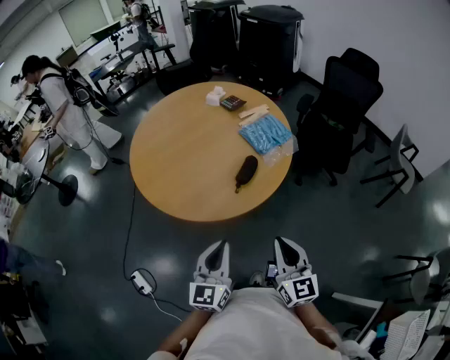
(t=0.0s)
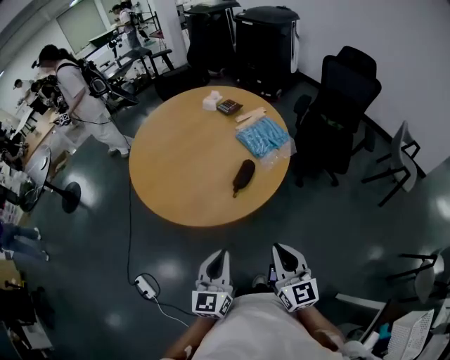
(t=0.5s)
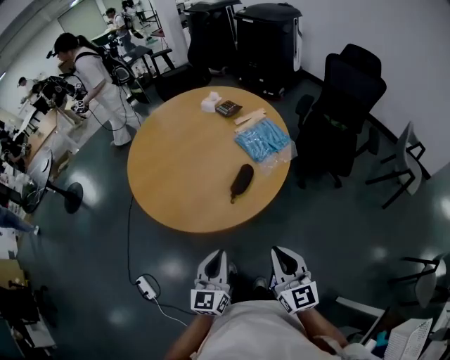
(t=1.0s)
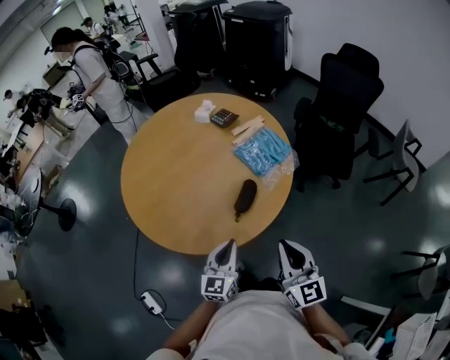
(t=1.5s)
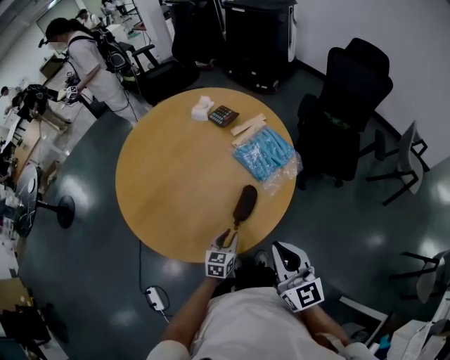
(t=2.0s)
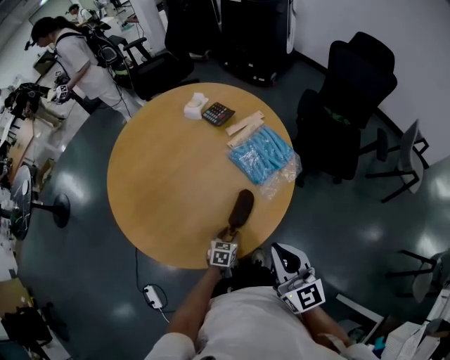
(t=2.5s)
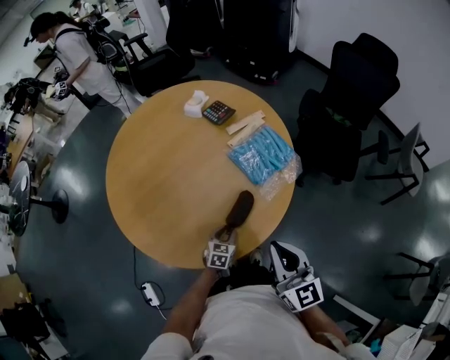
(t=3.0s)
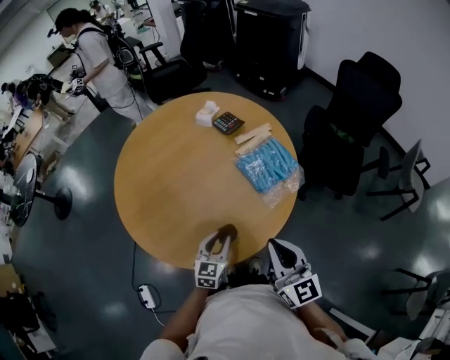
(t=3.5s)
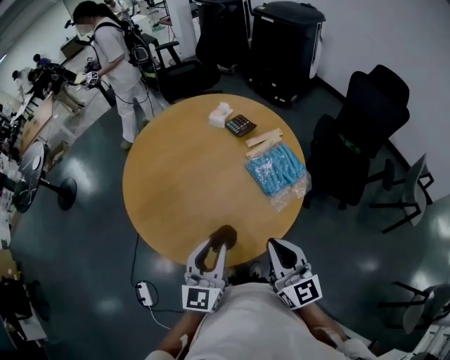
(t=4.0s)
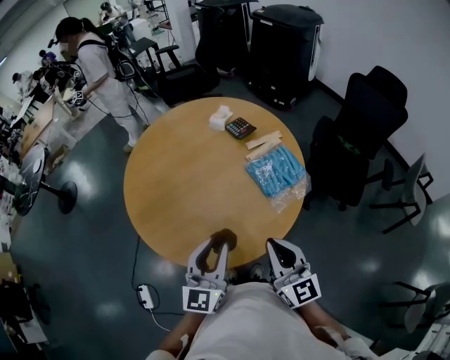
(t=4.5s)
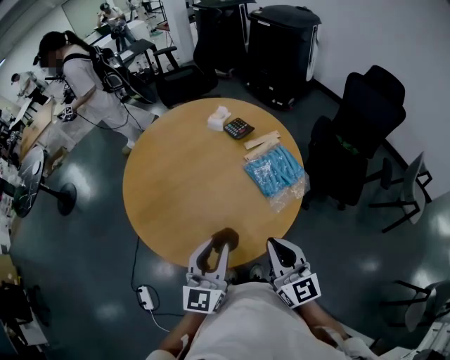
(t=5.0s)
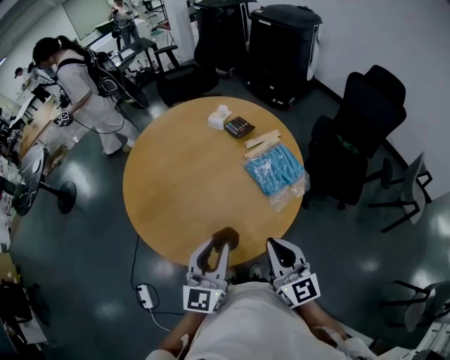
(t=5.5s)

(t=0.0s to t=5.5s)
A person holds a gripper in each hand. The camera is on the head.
t=0.0s - t=2.0s: The left gripper shifts some 35 cm forward and downward, rotates approximately 30 degrees, and opens up; the right gripper is displaced forward by about 20 cm.
t=2.0s - t=3.5s: The right gripper heads forward, covering approximately 5 cm; the left gripper goes roughly 5 cm upward.
t=3.5s - t=5.5s: The left gripper heads upward, covering approximately 20 cm, and swivels about 20 degrees.

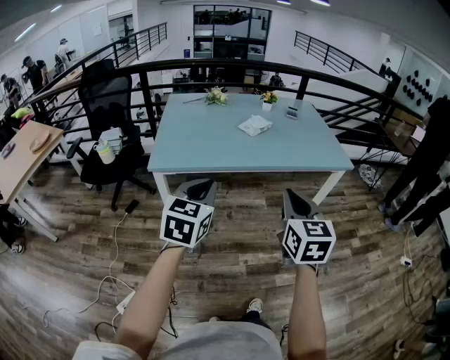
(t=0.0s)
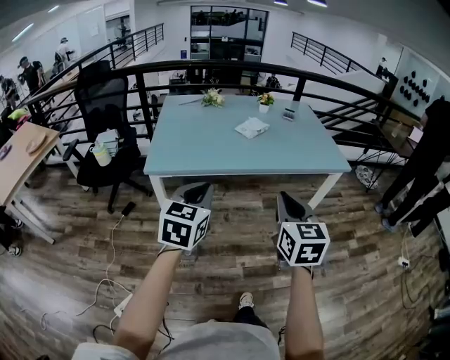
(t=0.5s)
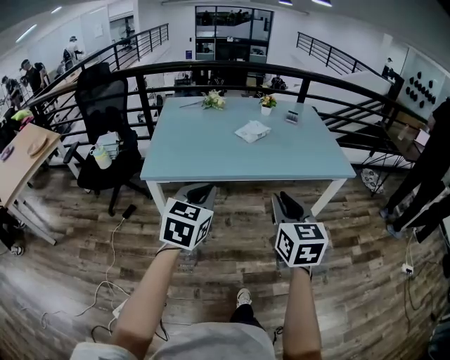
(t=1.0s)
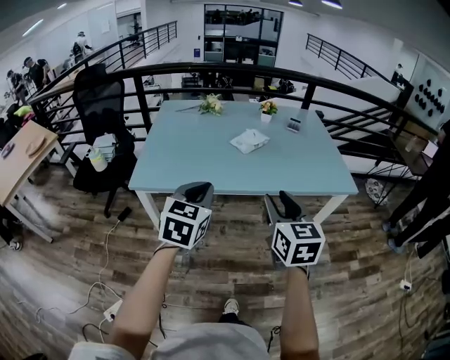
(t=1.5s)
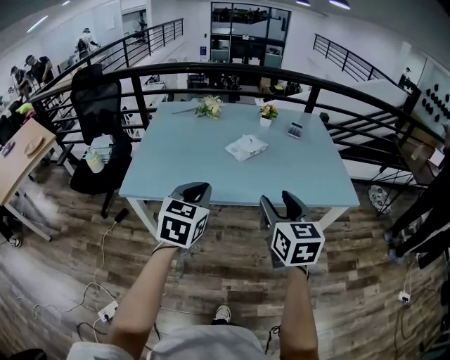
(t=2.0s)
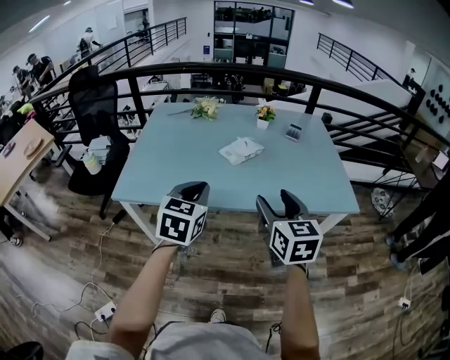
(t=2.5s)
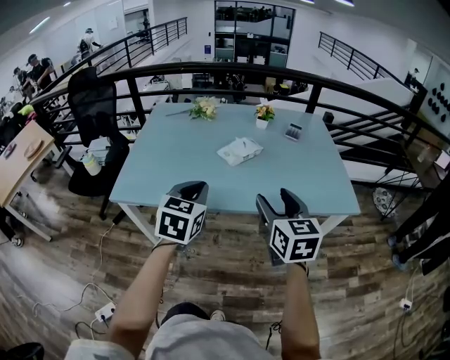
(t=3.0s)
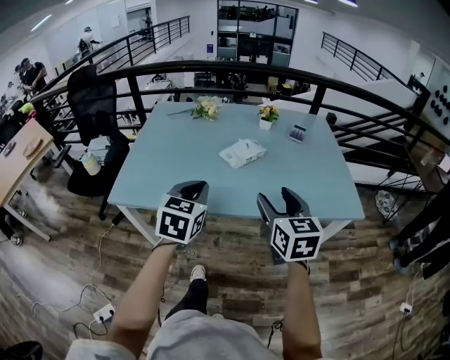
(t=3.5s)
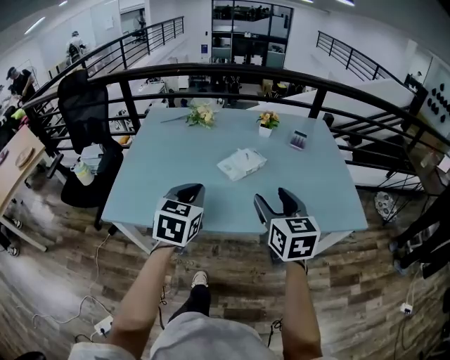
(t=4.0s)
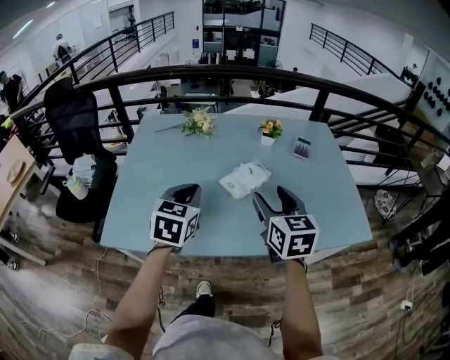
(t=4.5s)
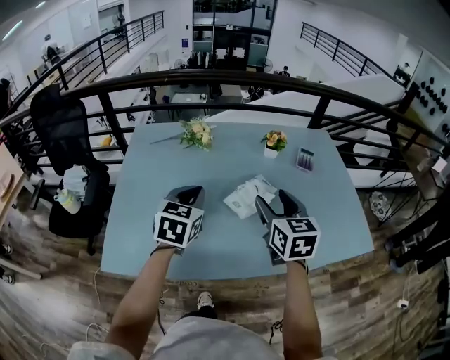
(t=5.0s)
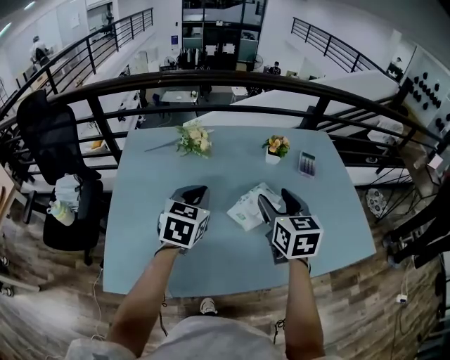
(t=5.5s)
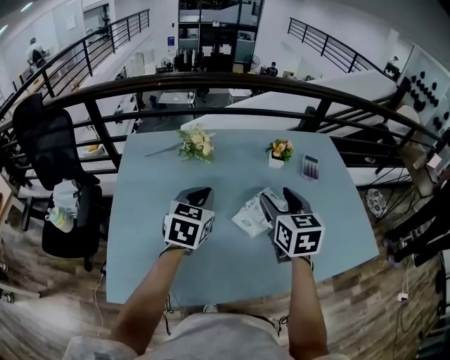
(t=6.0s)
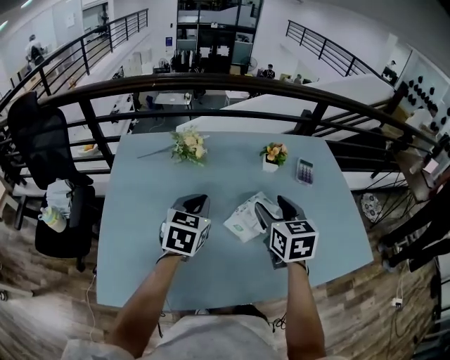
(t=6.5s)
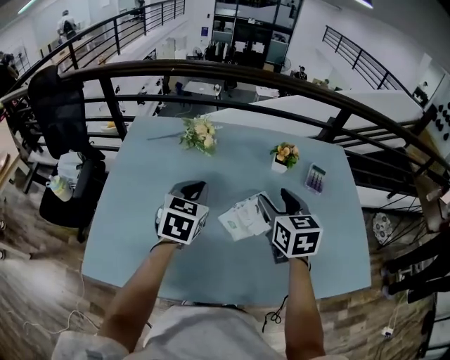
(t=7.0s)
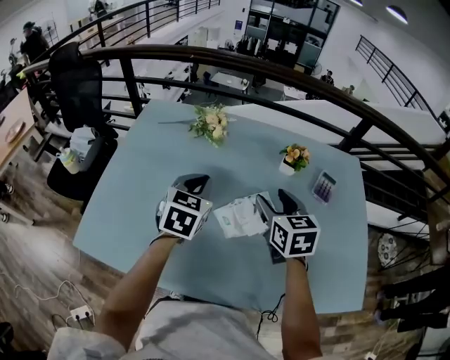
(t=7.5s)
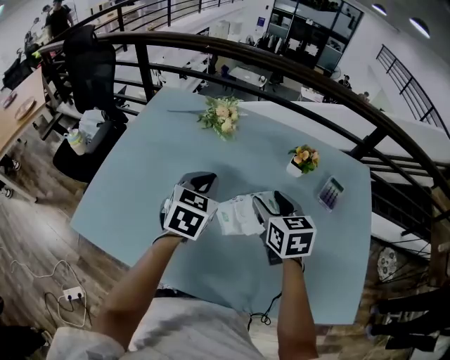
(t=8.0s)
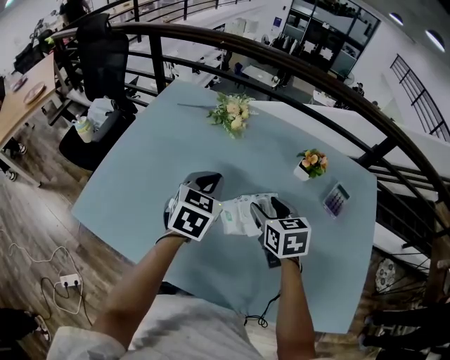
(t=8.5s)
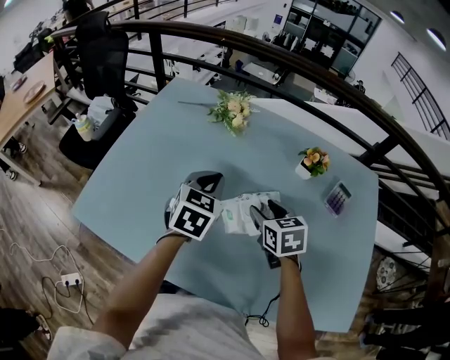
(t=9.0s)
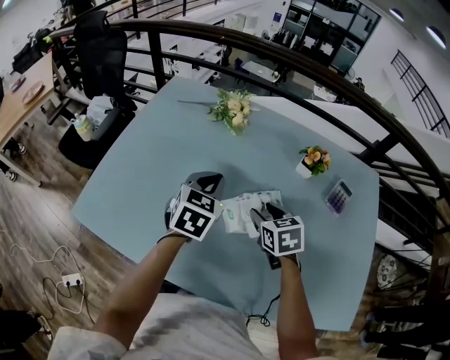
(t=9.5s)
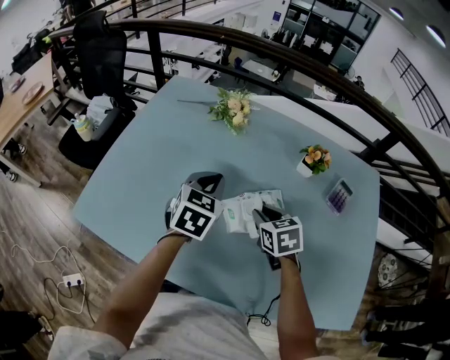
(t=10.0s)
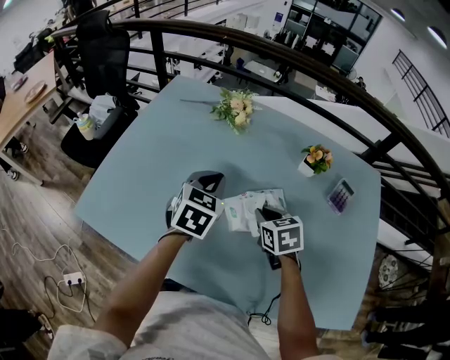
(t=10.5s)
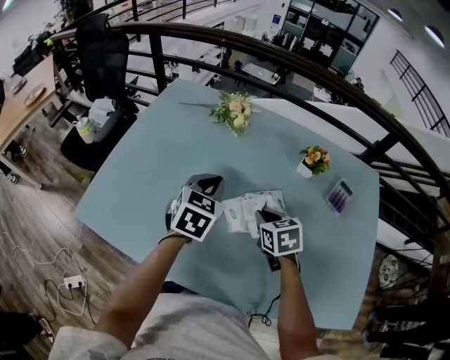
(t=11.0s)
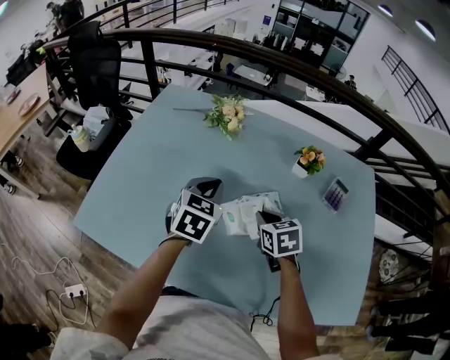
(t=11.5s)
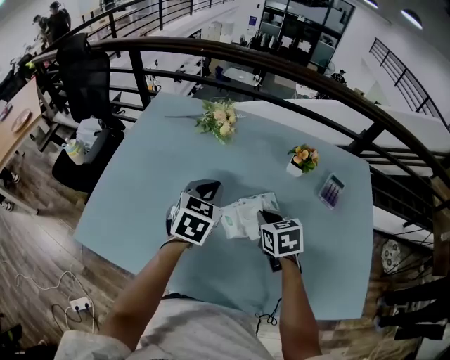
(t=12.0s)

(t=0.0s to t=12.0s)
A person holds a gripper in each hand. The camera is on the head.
t=0.0s - t=2.0s: The left gripper travels forward and to the right by about 25 cm; the right gripper moves forward, some 20 cm, and opens up.
t=2.0s - t=4.0s: Both grippers travel together forward, approximately 15 cm.
t=4.0s - t=6.0s: Both grippers travel together forward, some 25 cm.
t=6.0s - t=8.0s: The left gripper ends up some 5 cm from where it was, and swivels approximately 20 degrees. The right gripper shifts roughly 10 cm downward, and changes its angle by roughly 30 degrees.
t=8.0s - t=10.0s: The right gripper heads downward, covering about 10 cm, and closes.
t=10.0s - t=12.0s: The right gripper closes.

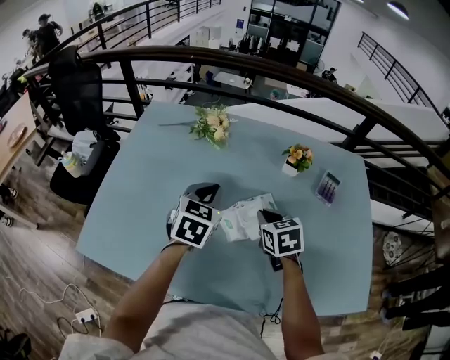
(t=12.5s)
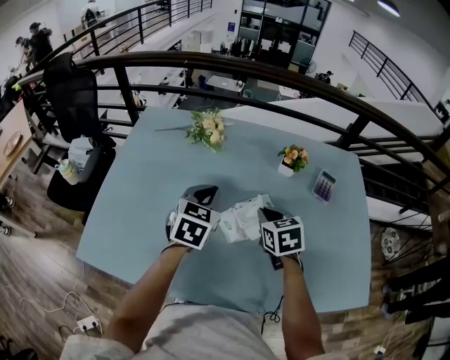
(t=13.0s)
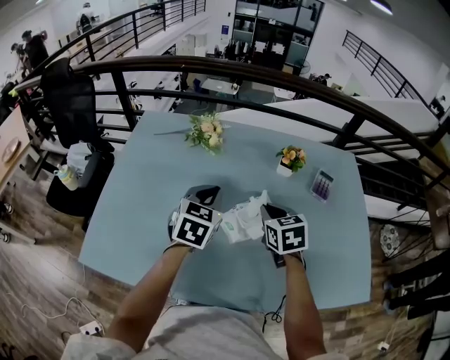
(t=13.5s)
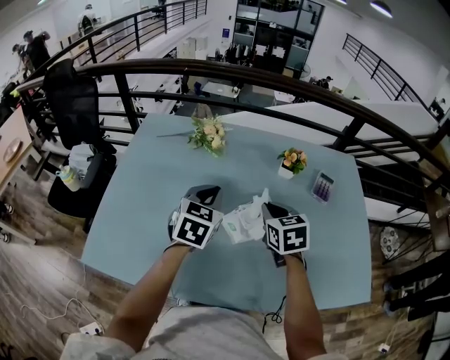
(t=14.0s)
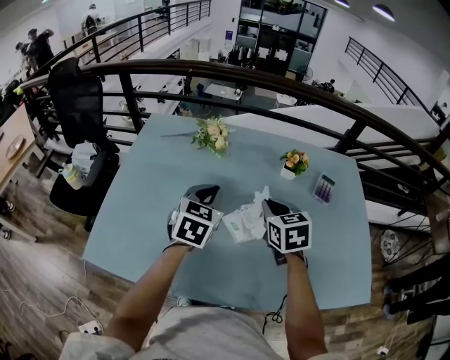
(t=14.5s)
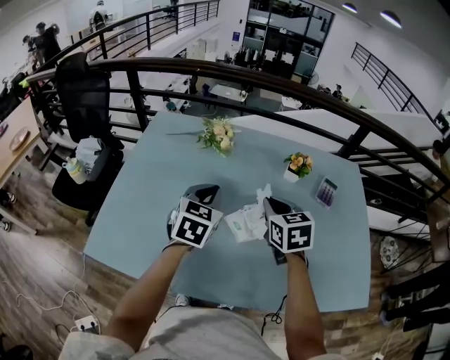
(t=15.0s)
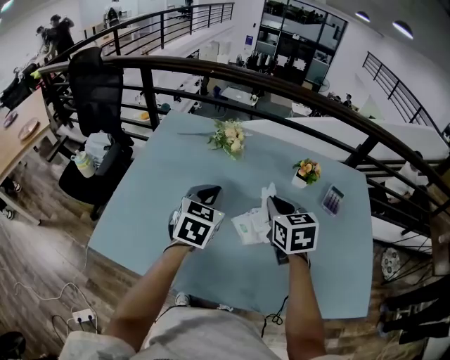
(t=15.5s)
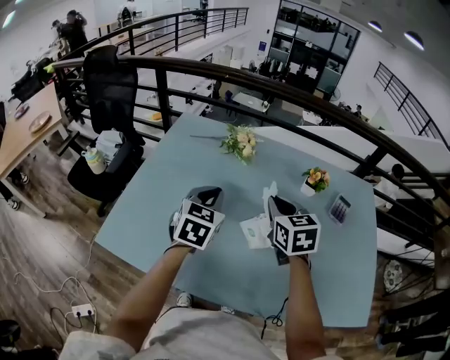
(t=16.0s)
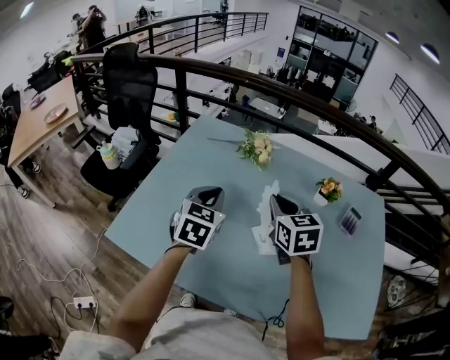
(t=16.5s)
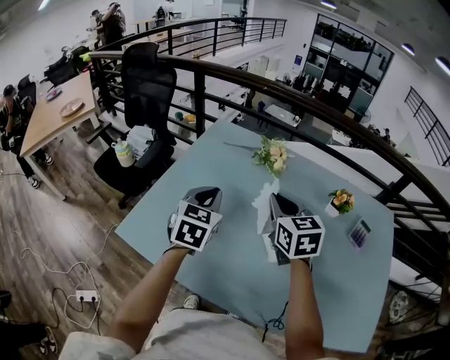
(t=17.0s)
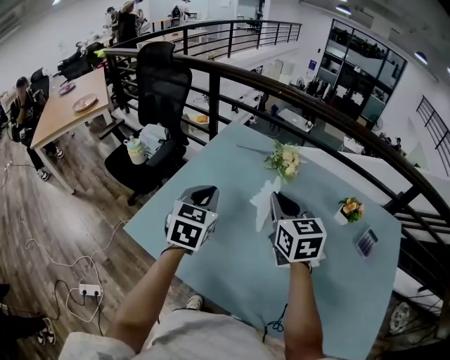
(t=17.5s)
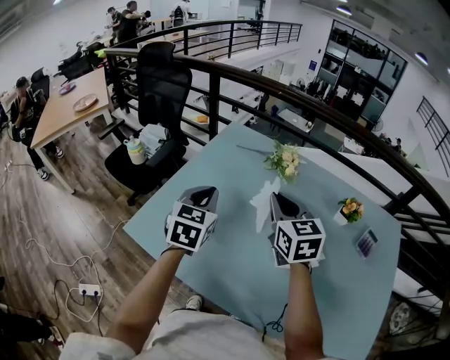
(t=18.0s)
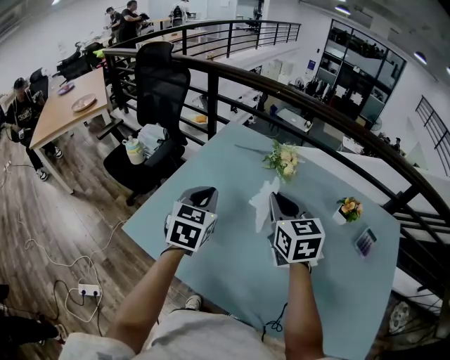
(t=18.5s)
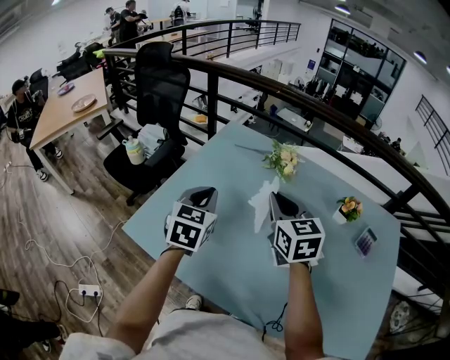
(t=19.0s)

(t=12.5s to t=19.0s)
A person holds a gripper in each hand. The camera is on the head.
t=12.5s - t=14.5s: The right gripper moves upward, roughly 10 cm.
t=14.5s - t=17.0s: The left gripper travels to the left by about 15 cm, and rotates approximately 20 degrees. The right gripper heads to the left and upward, covering approximately 15 cm, and swivels approximately 20 degrees.
t=17.0s - t=19.0s: The grippers stay close to where they were, moving slightly.

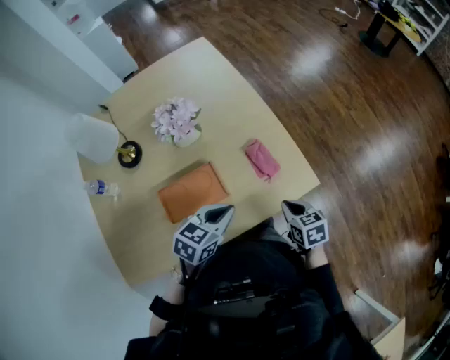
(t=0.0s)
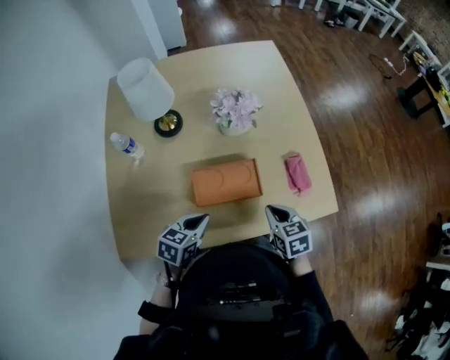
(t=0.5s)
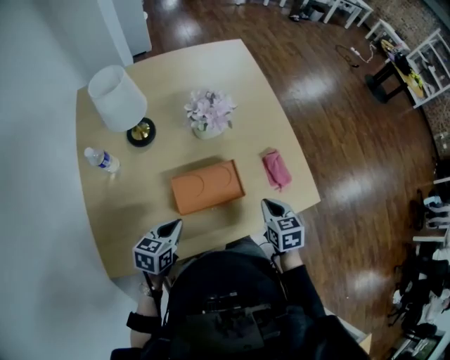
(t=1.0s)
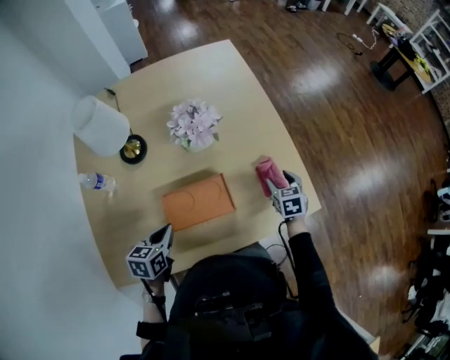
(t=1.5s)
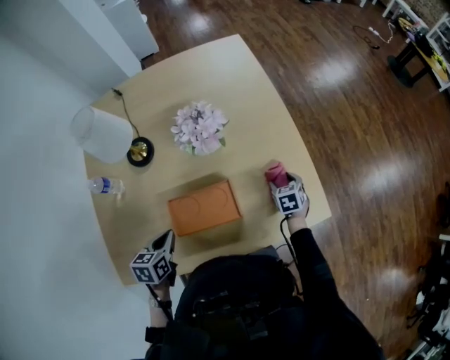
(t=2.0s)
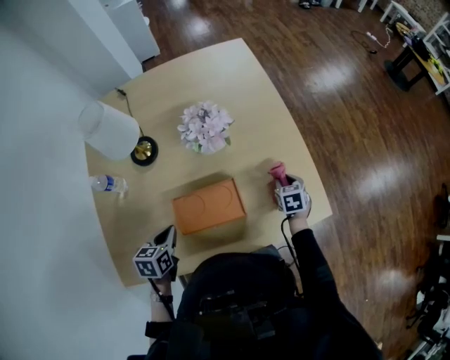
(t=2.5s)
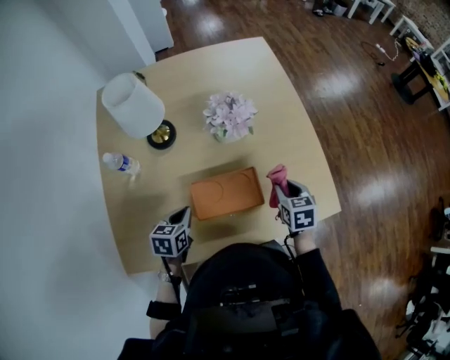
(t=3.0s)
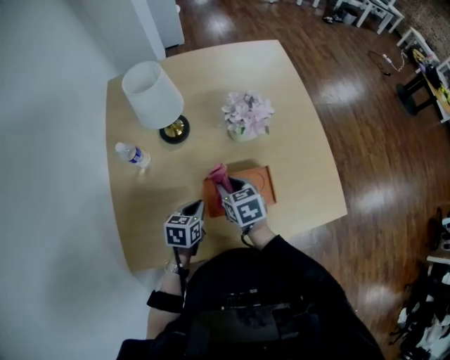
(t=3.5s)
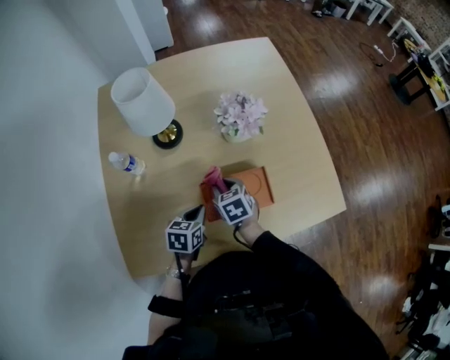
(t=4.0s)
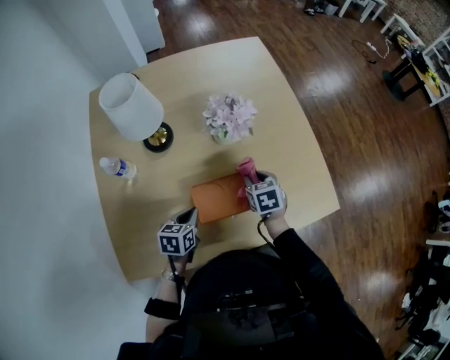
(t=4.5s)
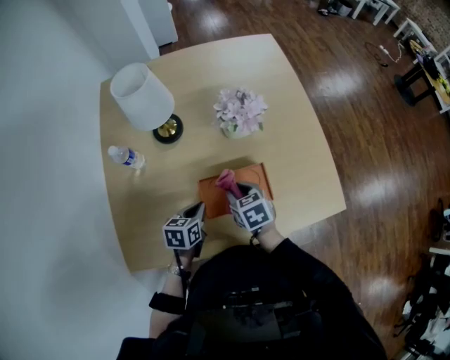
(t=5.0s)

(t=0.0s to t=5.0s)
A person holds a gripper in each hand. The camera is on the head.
t=0.0s - t=2.5s: The left gripper travels to the left by approximately 30 cm, and swivels about 40 degrees, while the right gripper heads forward, downward and to the left, covering some 20 cm, and opens.
t=2.5s - t=5.0s: The right gripper swings left and right, roughly 35 cm each way, with 2 reversals, and swivels some 30 degrees.
